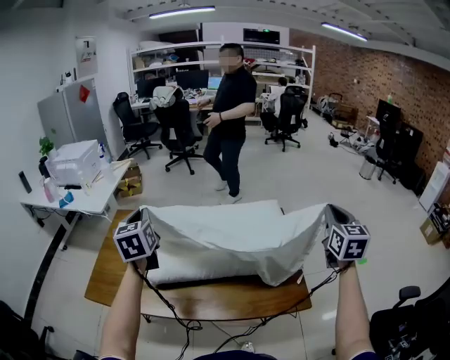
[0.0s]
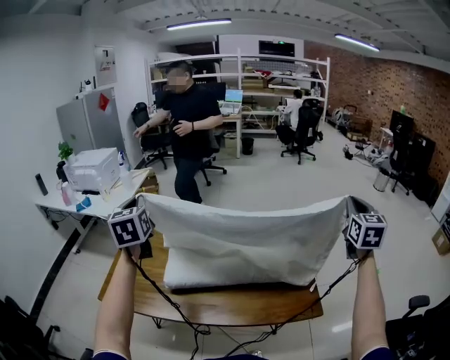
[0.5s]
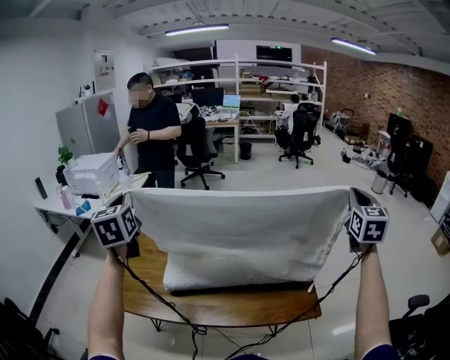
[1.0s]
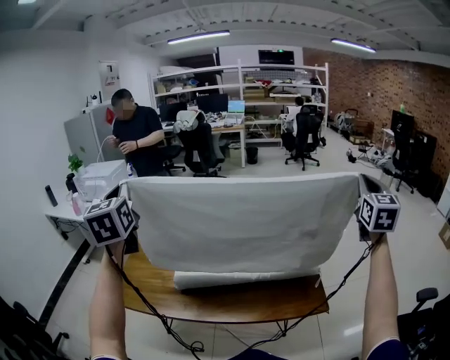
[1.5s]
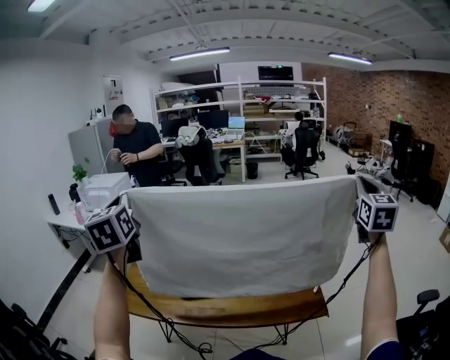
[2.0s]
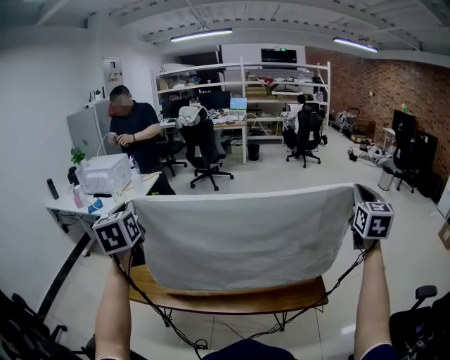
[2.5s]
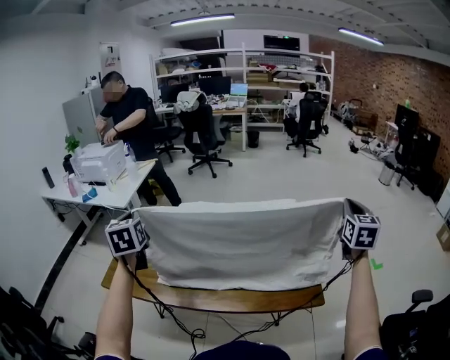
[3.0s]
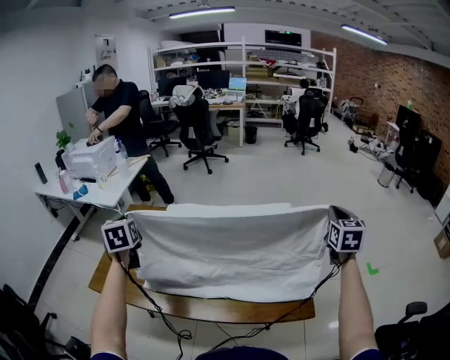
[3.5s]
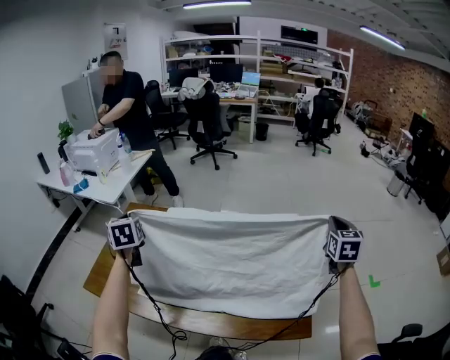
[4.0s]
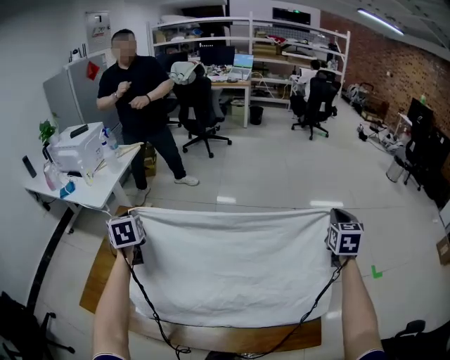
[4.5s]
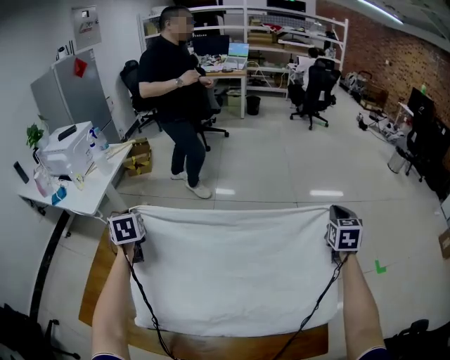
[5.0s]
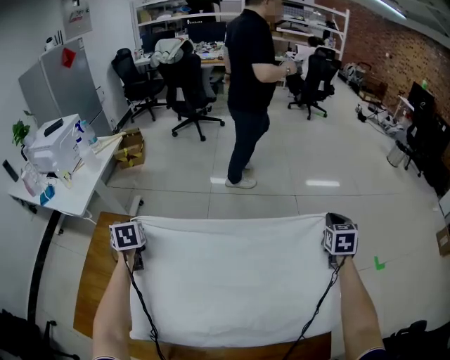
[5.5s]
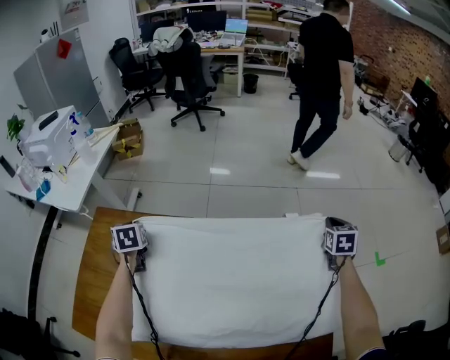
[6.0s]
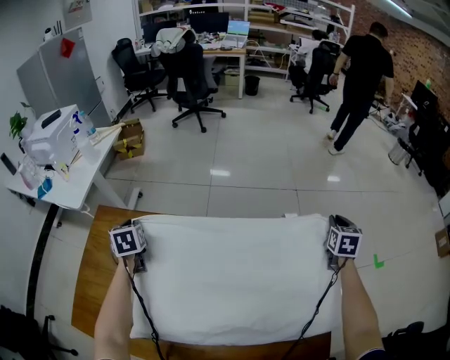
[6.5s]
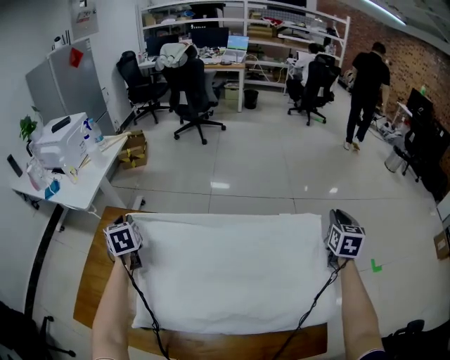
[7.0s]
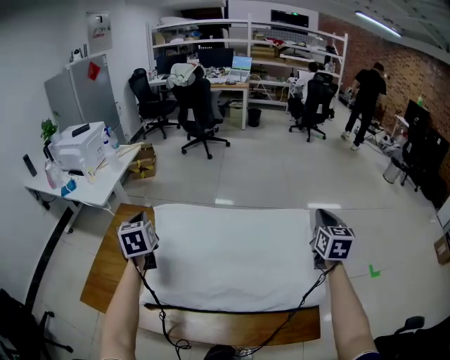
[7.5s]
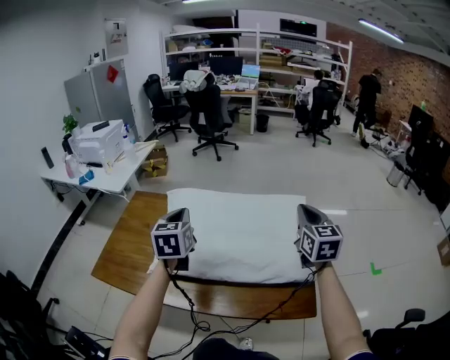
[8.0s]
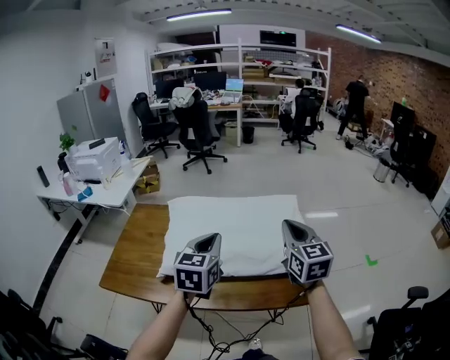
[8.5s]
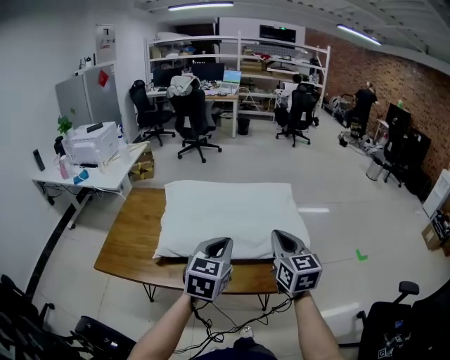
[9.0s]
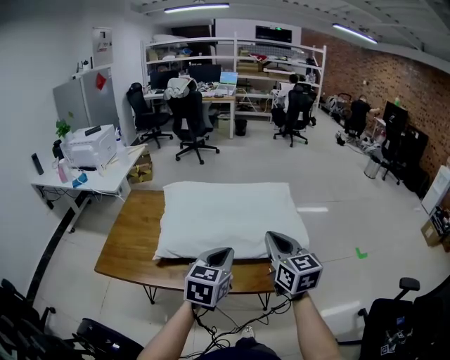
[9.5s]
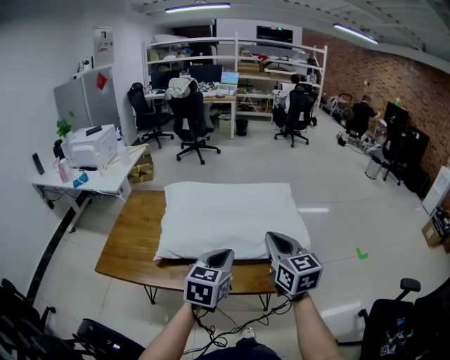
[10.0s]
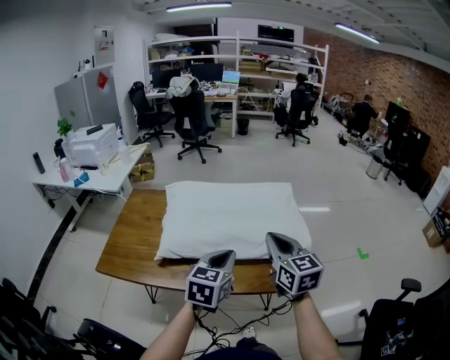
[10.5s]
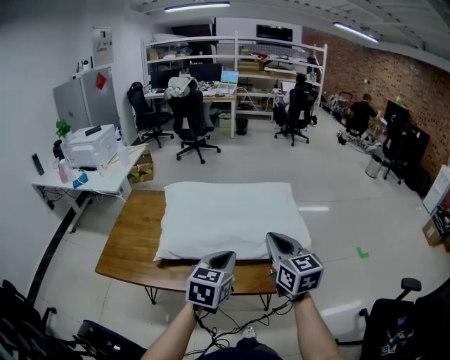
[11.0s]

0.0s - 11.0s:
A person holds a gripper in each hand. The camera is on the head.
0.0s - 2.0s: The left gripper goes approximately 25 cm upward, backward and to the left, while the right gripper moves upward, approximately 15 cm.
2.0s - 3.5s: Both grippers travel together downward and forward, roughly 25 cm. The right gripper rotates roughly 20 degrees. The left gripper turns by some 30 degrees.
3.5s - 5.5s: Both grippers travel together forward and downward, about 30 cm. The left gripper rotates about 20 degrees. The right gripper turns by some 20 degrees.
5.5s - 7.5s: The left gripper goes approximately 20 cm upward and backward, and rotates about 20 degrees. Meanwhile the right gripper heads upward, backward and to the left, covering approximately 20 cm, and changes its angle by about 20 degrees.
7.5s - 9.0s: The left gripper heads backward and to the right, covering roughly 40 cm, and rotates about 40 degrees; the right gripper moves backward and to the left, approximately 35 cm.
9.0s - 11.0s: The grippers make only small movements.

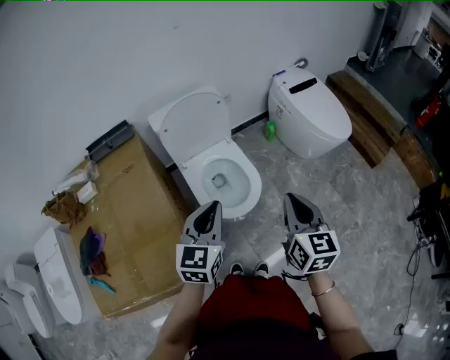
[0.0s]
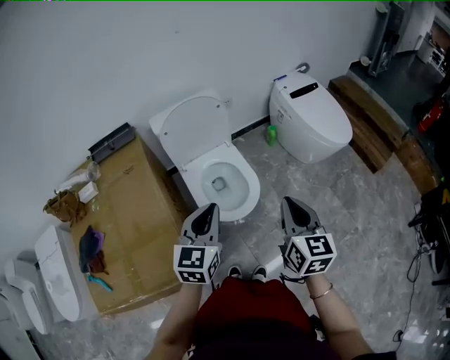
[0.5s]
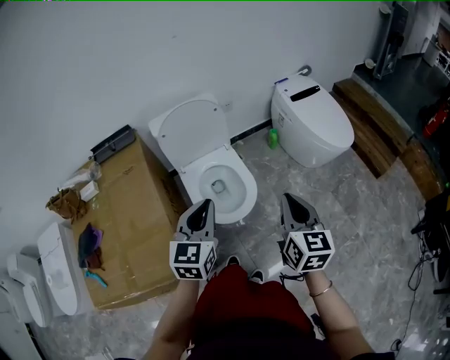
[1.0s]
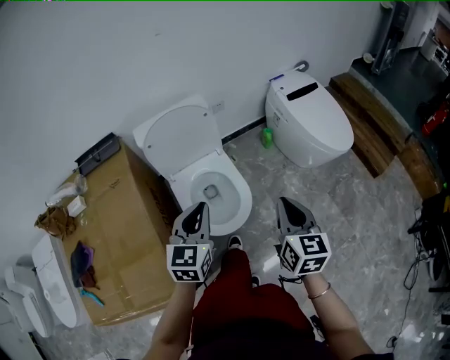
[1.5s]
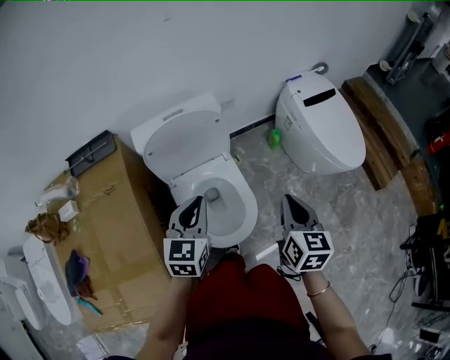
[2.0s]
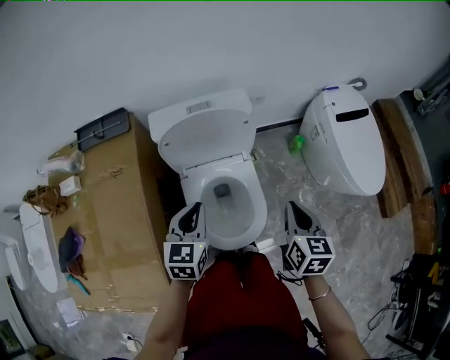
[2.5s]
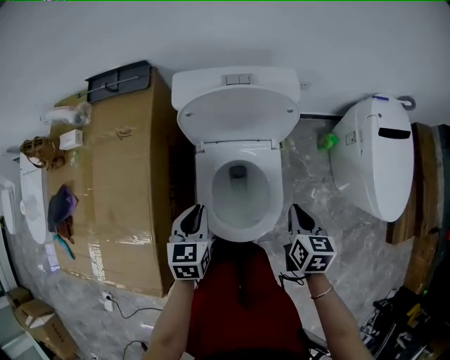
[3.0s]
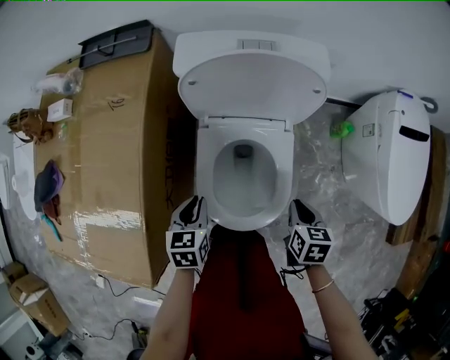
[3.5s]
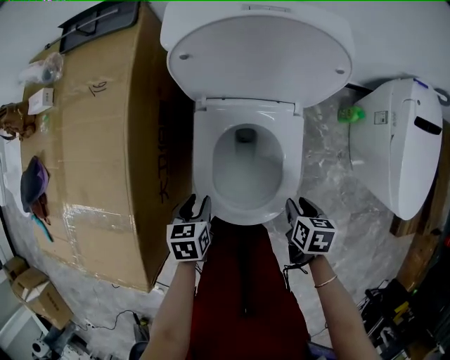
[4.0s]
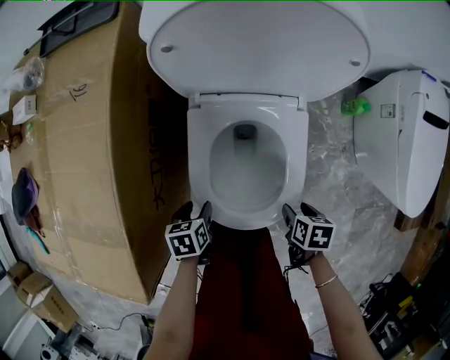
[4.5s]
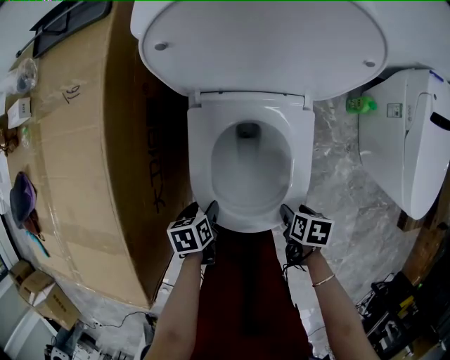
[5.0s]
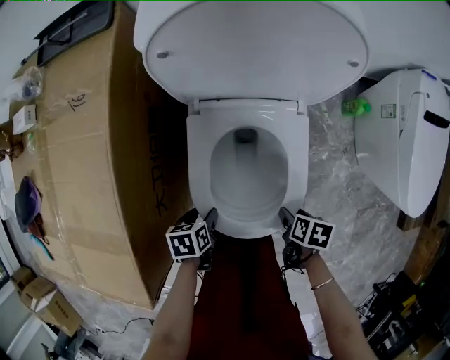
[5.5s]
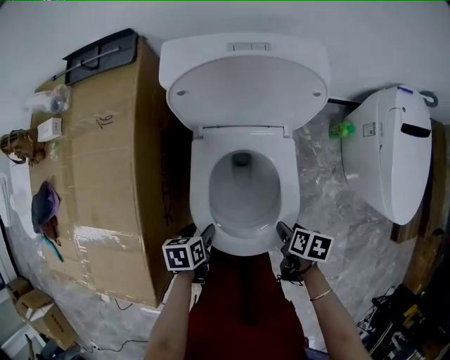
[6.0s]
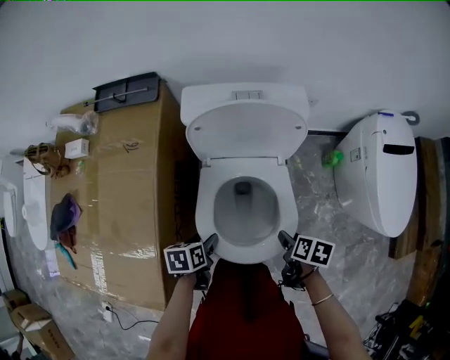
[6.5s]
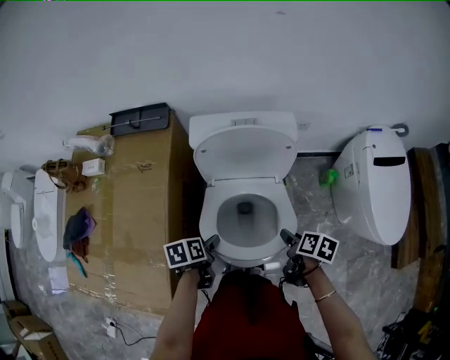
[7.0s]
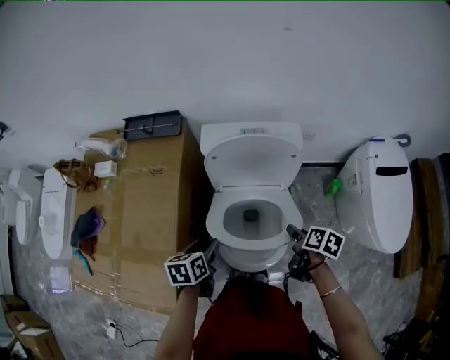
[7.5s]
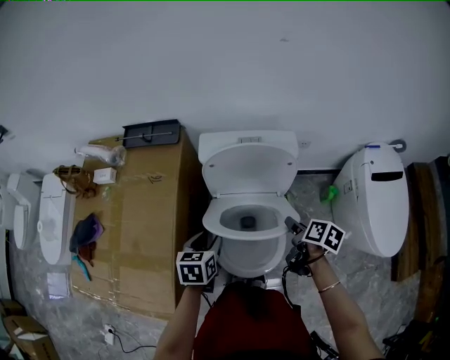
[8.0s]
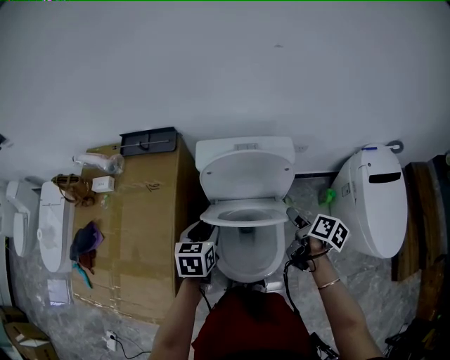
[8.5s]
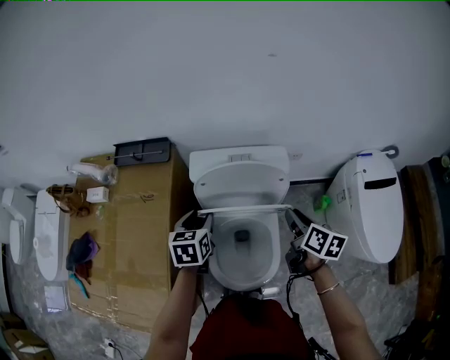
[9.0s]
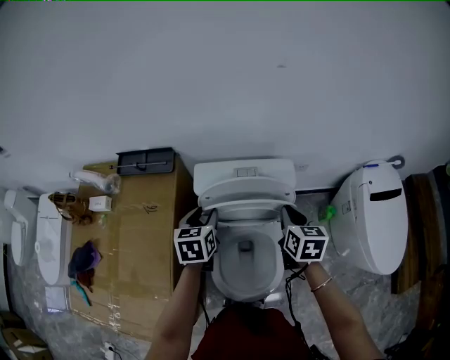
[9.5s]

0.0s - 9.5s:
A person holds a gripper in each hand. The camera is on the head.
0.0s - 2.0s: Both grippers move forward, roughly 20 cm.
2.0s - 4.0s: The grippers both shift downward by approximately 35 cm. The left gripper tilts its fingers about 40 degrees downward, and opens. The right gripper points its fingers about 40 degrees further downward, and opens up.
4.0s - 5.5s: The grippers both shift downward by about 10 cm. The right gripper turns by some 20 degrees, and opens up. The left gripper opens its fingers.
5.5s - 7.5s: Both grippers move upward, some 25 cm. The left gripper turns by about 20 degrees. Meanwhile the right gripper rotates some 30 degrees.
7.5s - 9.5s: The right gripper shifts approximately 20 cm forward and upward, turns by approximately 40 degrees, and closes its fingers, while the left gripper is displaced forward by about 20 cm, and turns by about 20 degrees.

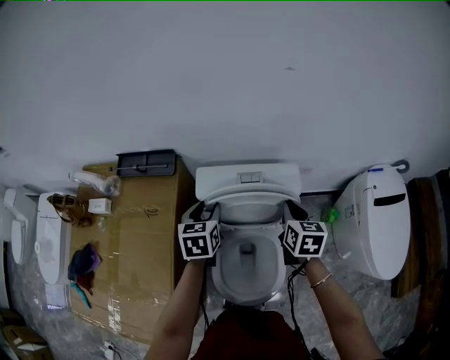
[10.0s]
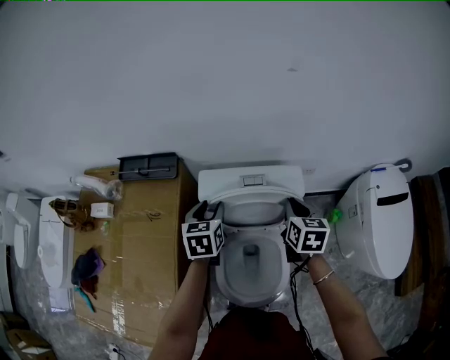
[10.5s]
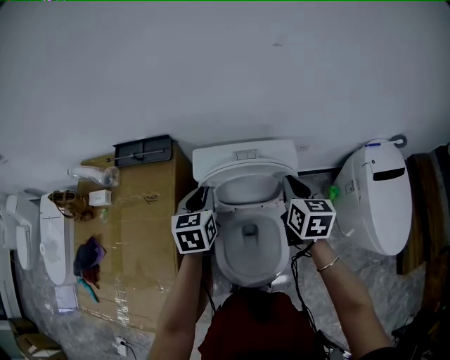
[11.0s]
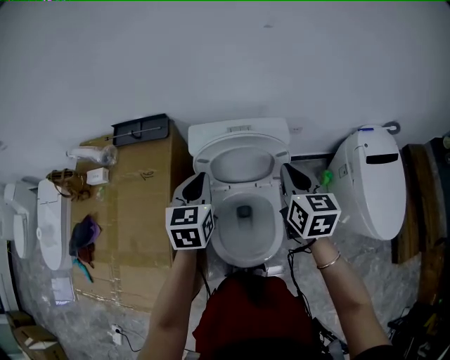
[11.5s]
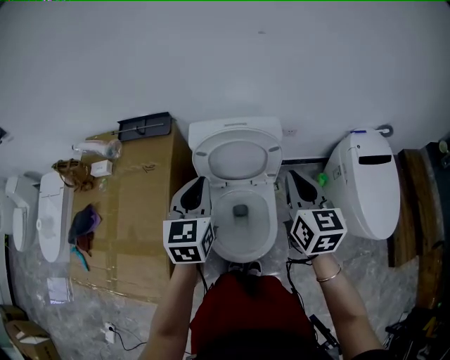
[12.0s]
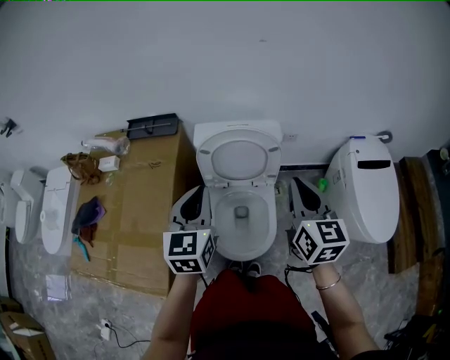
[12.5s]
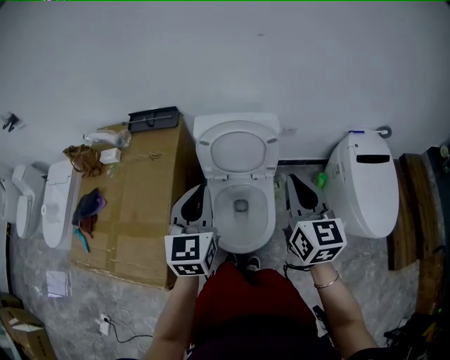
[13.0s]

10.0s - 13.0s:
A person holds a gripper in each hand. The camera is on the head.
10.0s - 11.5s: The left gripper heads backward and upward, covering roughly 10 cm, and closes up; the right gripper is displaced upward and backward by some 15 cm.
11.5s - 13.0s: Both grippers travel together backward and upward, approximately 20 cm.

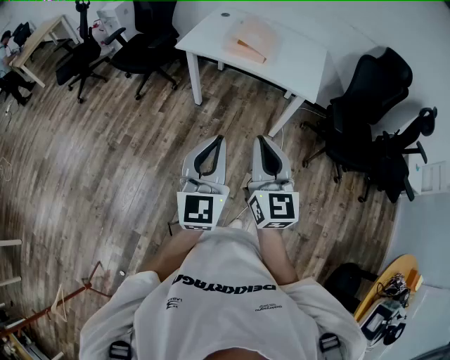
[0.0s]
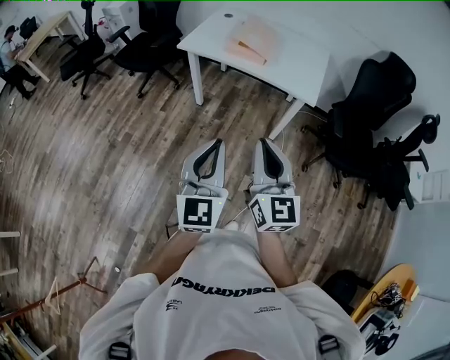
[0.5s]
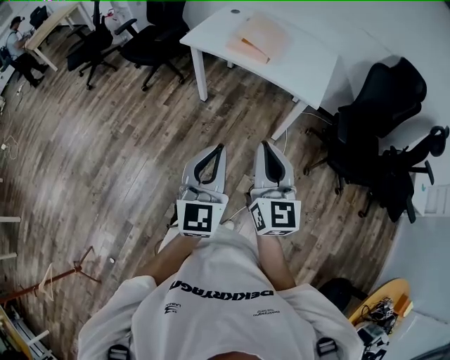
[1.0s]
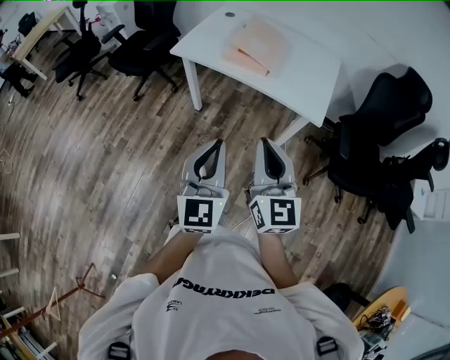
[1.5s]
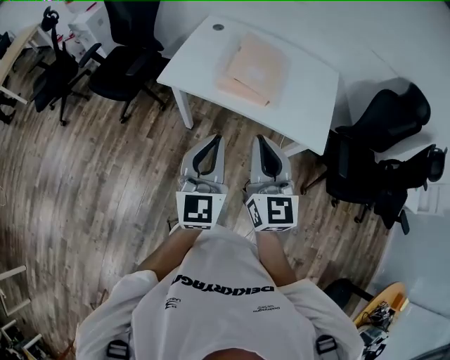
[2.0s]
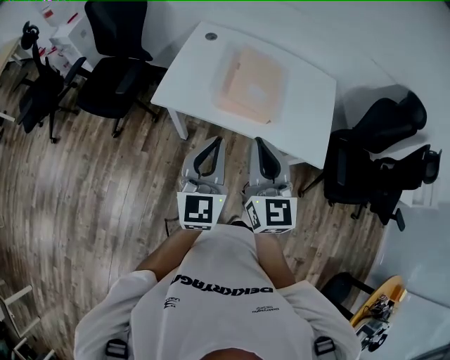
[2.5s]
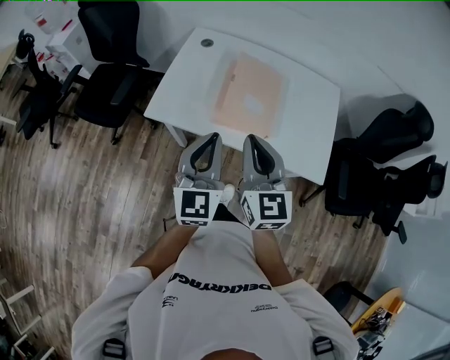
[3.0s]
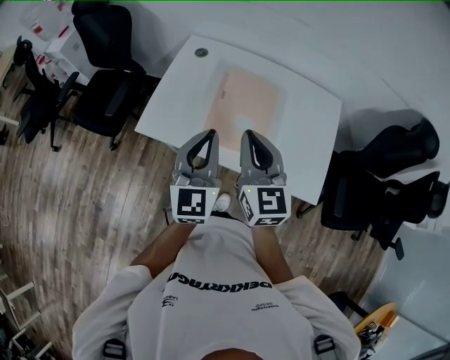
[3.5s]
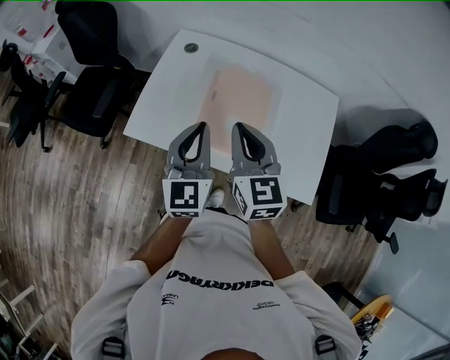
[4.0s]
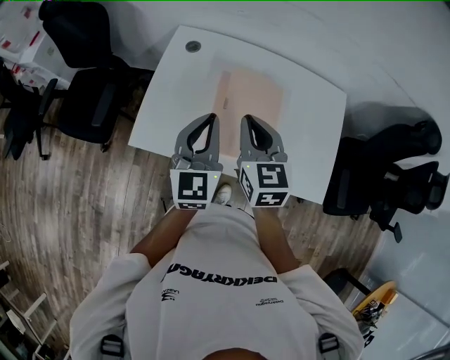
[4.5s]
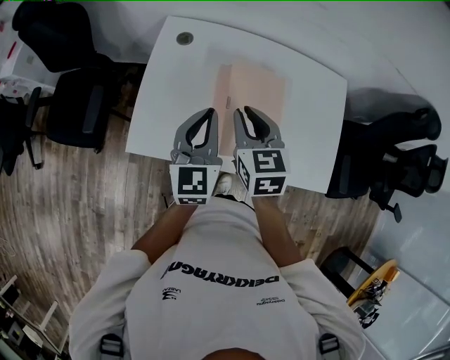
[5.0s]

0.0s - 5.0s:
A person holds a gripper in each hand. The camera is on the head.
0.0s - 2.5s: The pair of grippers is taken forward, some 50 cm.
2.5s - 5.0s: The left gripper travels forward by about 35 cm. Meanwhile the right gripper moves forward and downward, about 40 cm, and changes its angle by some 30 degrees.
